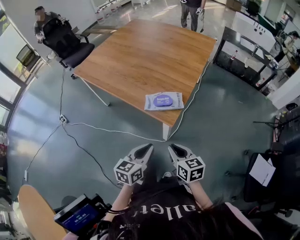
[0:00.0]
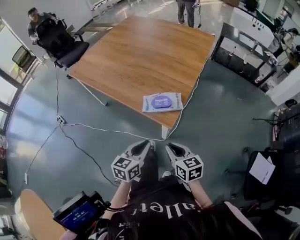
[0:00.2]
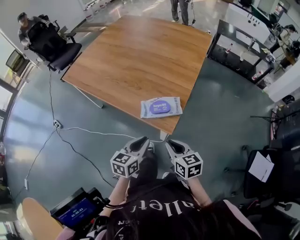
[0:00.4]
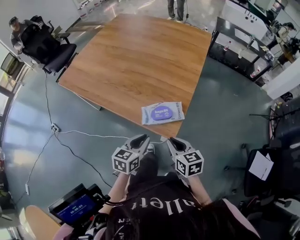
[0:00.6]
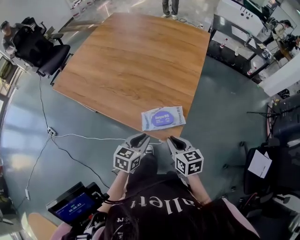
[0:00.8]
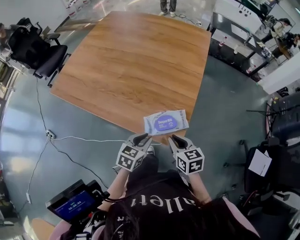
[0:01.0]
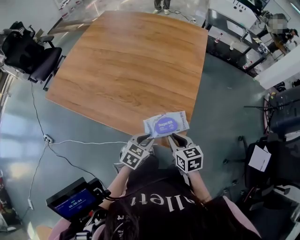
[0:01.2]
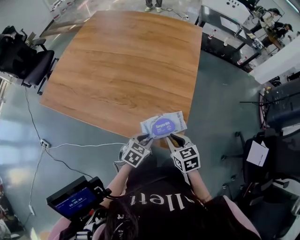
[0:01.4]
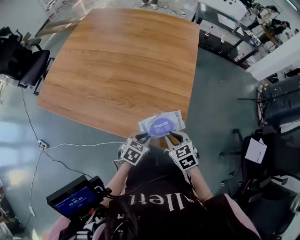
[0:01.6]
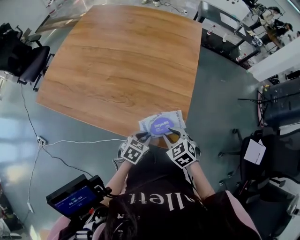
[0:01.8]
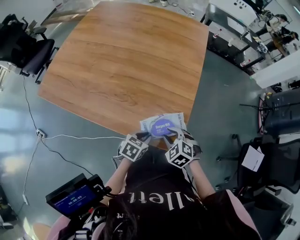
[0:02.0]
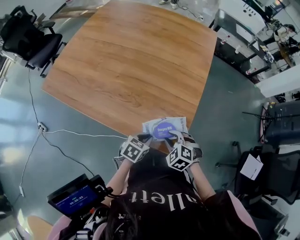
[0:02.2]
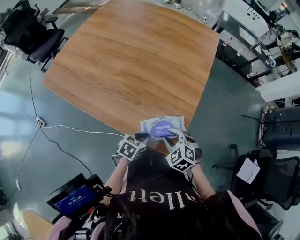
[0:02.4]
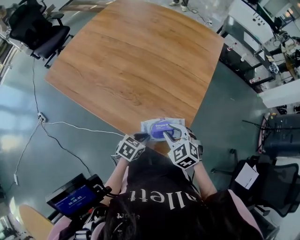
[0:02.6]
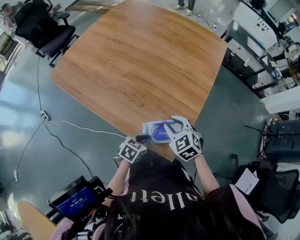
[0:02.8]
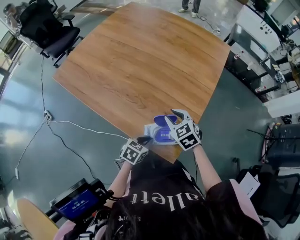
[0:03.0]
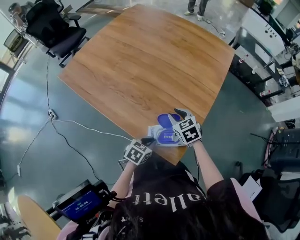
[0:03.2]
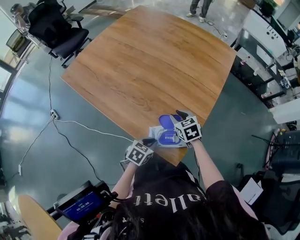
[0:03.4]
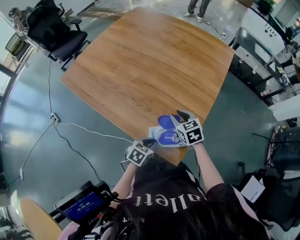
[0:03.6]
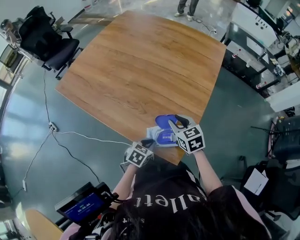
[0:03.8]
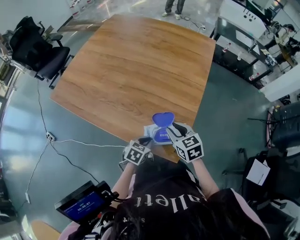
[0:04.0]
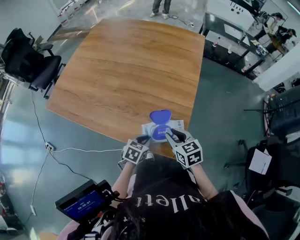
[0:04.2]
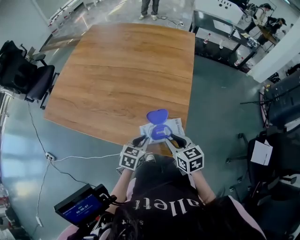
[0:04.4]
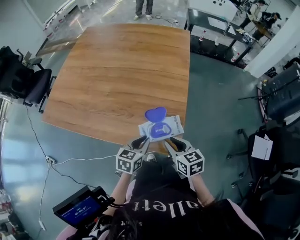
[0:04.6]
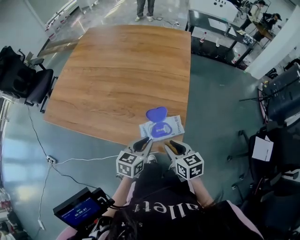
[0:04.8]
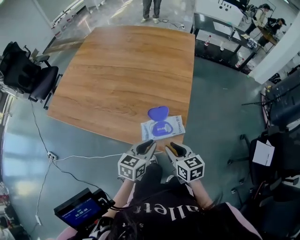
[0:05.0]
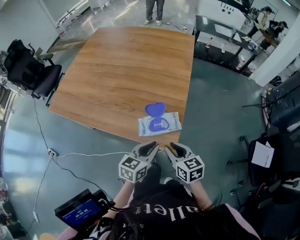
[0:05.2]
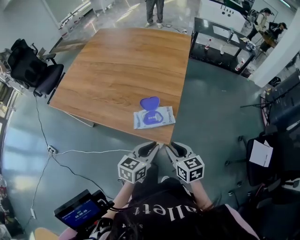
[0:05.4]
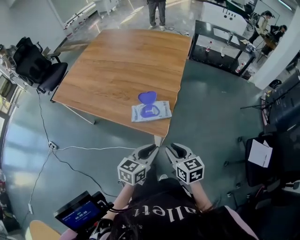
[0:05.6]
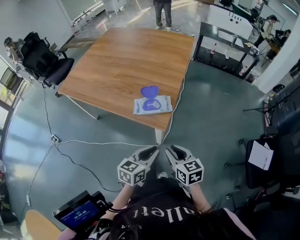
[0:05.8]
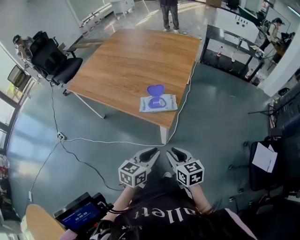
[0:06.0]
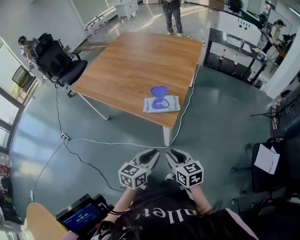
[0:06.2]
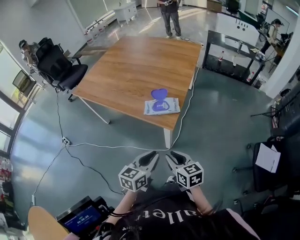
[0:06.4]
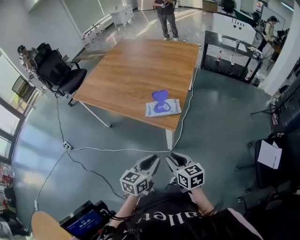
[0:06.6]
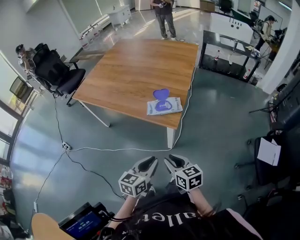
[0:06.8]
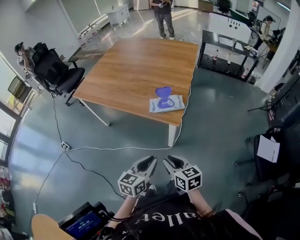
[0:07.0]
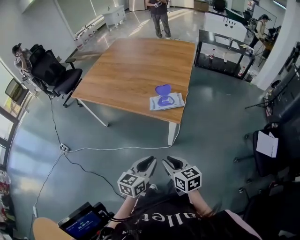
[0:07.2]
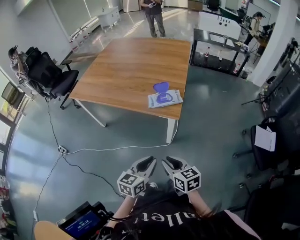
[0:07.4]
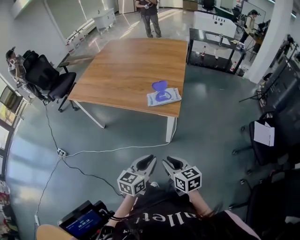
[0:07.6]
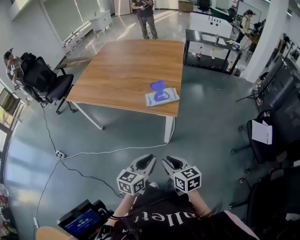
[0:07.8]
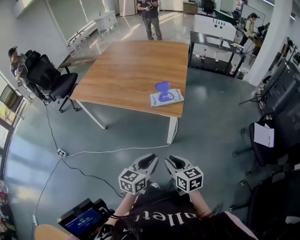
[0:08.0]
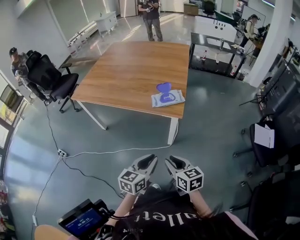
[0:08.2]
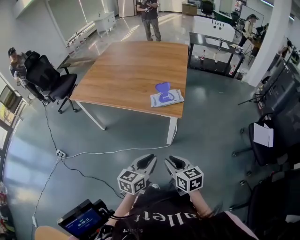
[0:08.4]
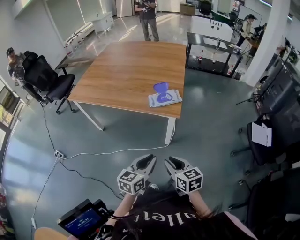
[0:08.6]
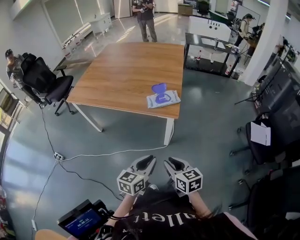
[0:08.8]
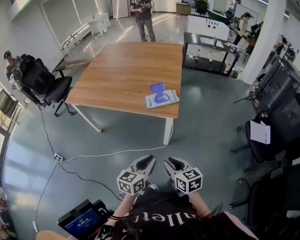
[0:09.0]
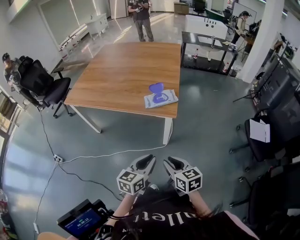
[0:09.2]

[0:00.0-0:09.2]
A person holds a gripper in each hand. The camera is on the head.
0:00.0 to 0:01.6: The right gripper is displaced forward by roughly 25 cm, and rotates approximately 30 degrees. Meanwhile the left gripper goes some 30 cm forward and downward, and rotates about 40 degrees.
0:01.6 to 0:03.0: The right gripper travels forward and to the left by roughly 15 cm, and changes its angle by about 30 degrees.
0:03.0 to 0:04.6: The left gripper goes about 5 cm upward; the right gripper heads backward, covering approximately 15 cm, and rolls clockwise, seen from behind, by approximately 40 degrees.
0:04.6 to 0:06.2: The two grippers go about 30 cm backward.
0:06.2 to 0:07.6: Both grippers move to the left and backward, some 20 cm.
0:07.6 to 0:09.2: There are only small adjustments of the grippers.

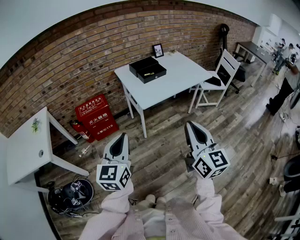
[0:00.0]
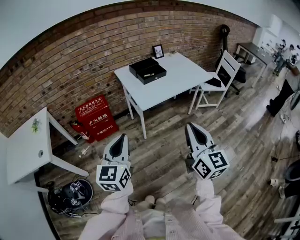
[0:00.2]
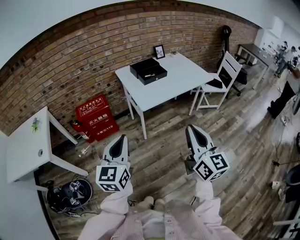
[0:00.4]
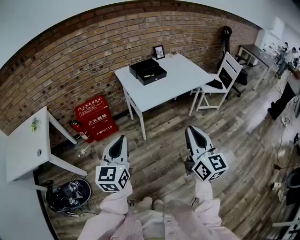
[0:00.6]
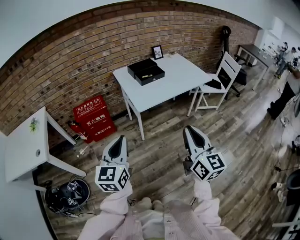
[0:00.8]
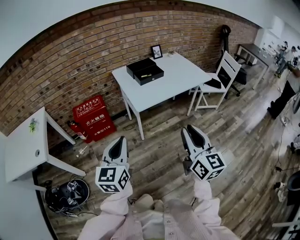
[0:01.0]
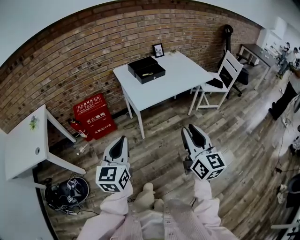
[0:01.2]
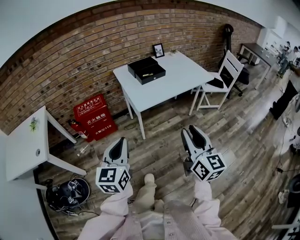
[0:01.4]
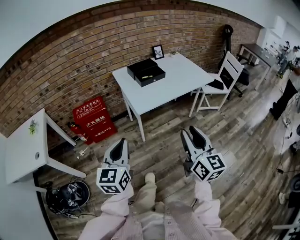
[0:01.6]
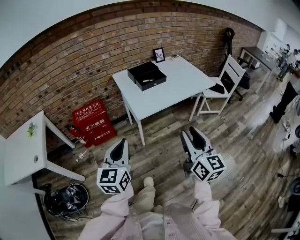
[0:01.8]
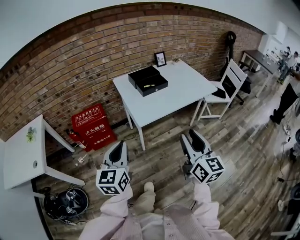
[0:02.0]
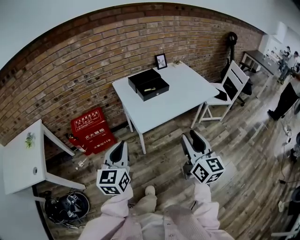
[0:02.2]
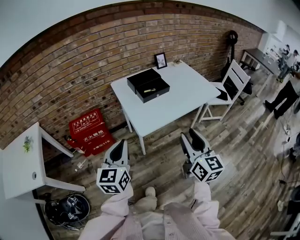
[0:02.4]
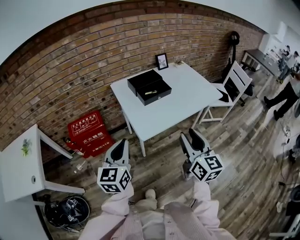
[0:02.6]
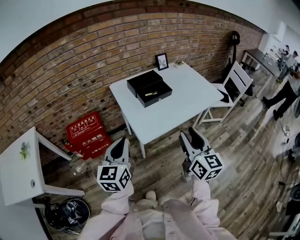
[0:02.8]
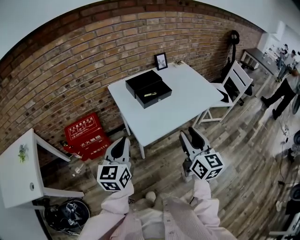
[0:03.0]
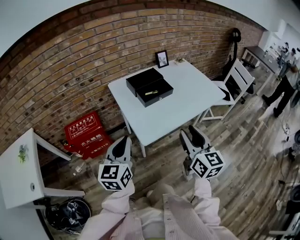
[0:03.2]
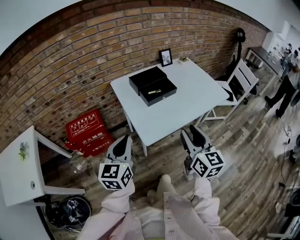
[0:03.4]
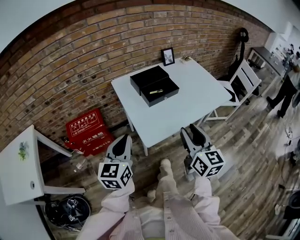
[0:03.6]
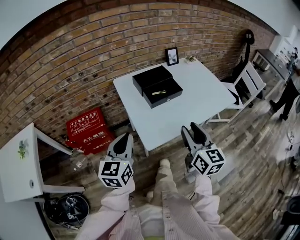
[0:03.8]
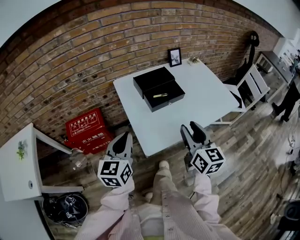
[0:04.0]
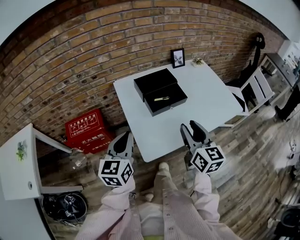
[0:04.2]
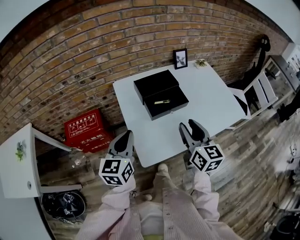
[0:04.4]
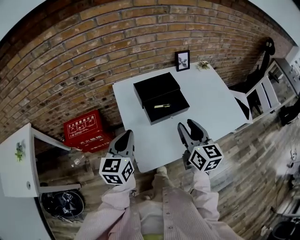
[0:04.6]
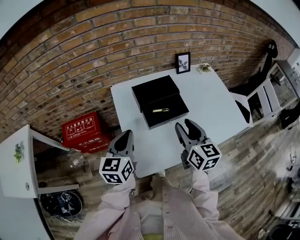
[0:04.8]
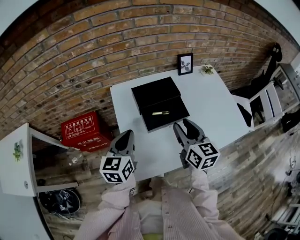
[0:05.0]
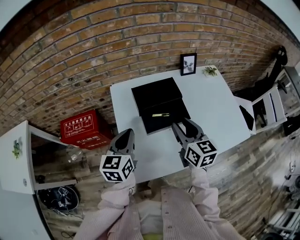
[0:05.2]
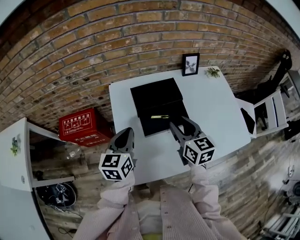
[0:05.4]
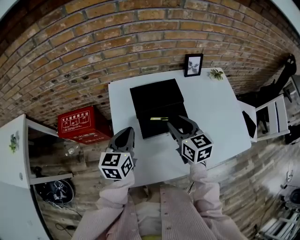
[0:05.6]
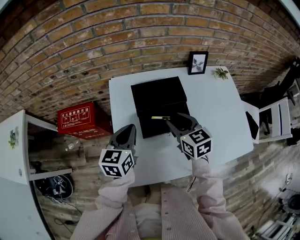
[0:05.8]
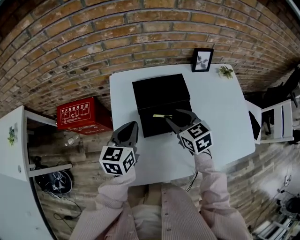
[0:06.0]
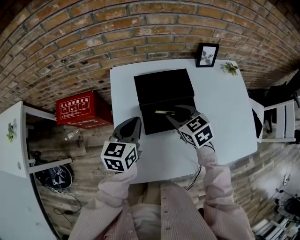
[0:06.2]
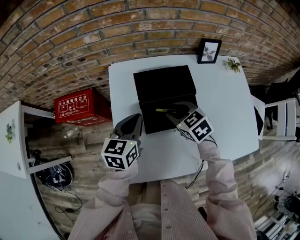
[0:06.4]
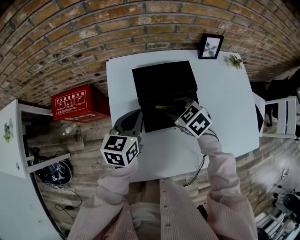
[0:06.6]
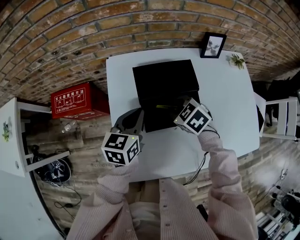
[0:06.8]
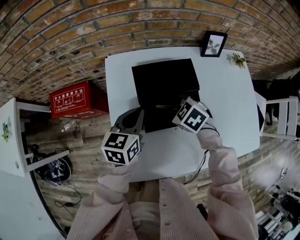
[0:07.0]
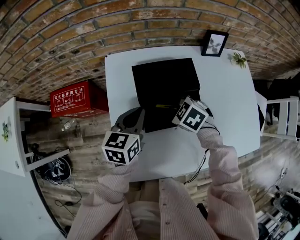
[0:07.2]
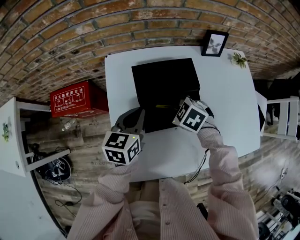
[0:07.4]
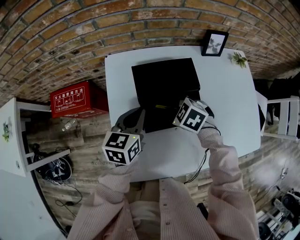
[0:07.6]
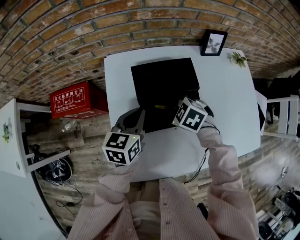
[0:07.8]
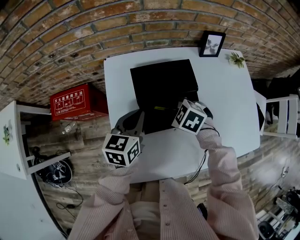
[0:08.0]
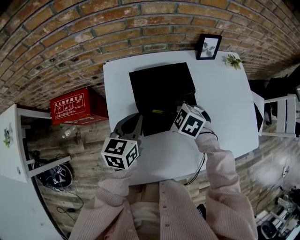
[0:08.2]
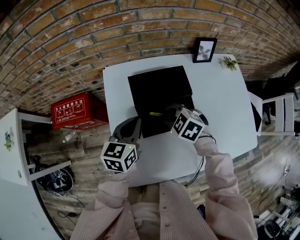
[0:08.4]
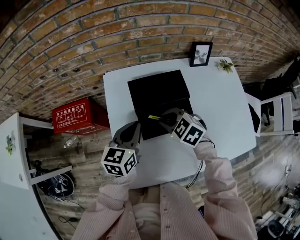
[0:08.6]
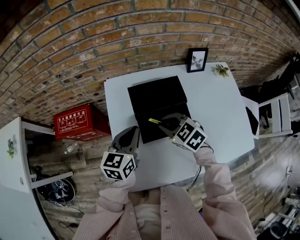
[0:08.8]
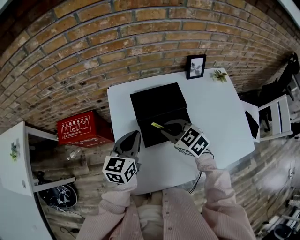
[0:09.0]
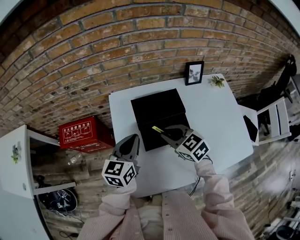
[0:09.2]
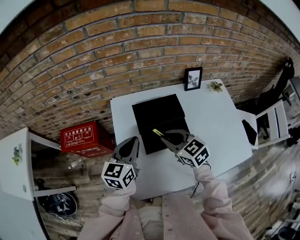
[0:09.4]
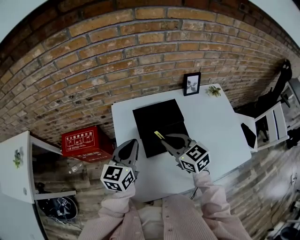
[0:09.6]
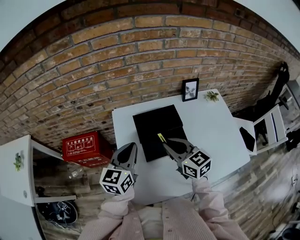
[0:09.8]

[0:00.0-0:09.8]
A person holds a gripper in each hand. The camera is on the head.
0:00.0 to 0:01.4: The left gripper moves roughly 5 cm. The right gripper goes roughly 5 cm downward, and opens up.
0:01.4 to 0:02.8: The two grippers go roughly 25 cm forward.
0:02.8 to 0:04.2: Both grippers move forward, about 15 cm.
0:04.2 to 0:05.6: The right gripper is displaced forward by about 25 cm, and changes its angle by about 30 degrees. Meanwhile the left gripper goes approximately 20 cm forward and to the right.
0:05.6 to 0:07.0: The right gripper heads downward, covering roughly 15 cm, and tips its fingers downward by some 40 degrees; the left gripper goes some 10 cm downward and forward.
0:07.0 to 0:08.4: The right gripper closes its fingers.
0:08.4 to 0:09.8: Both grippers travel together upward, approximately 15 cm. The right gripper points its fingers about 40 degrees further upward.

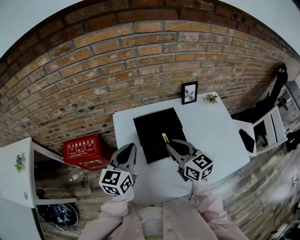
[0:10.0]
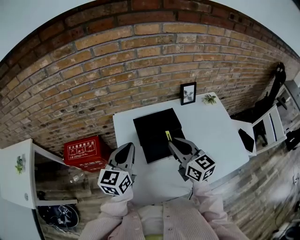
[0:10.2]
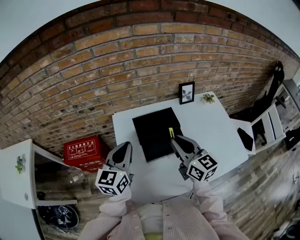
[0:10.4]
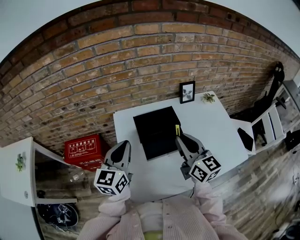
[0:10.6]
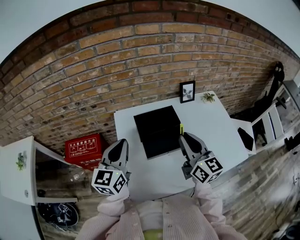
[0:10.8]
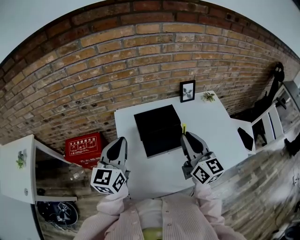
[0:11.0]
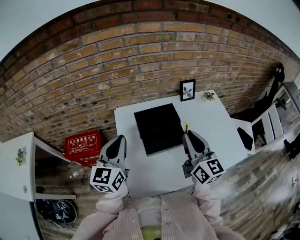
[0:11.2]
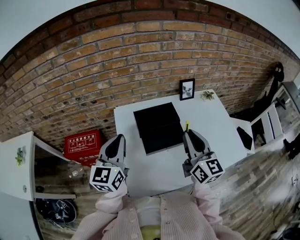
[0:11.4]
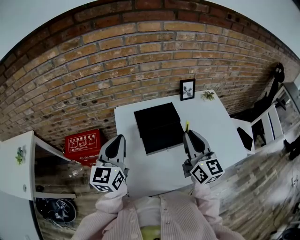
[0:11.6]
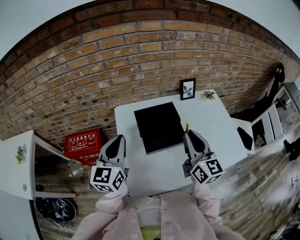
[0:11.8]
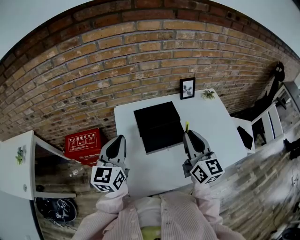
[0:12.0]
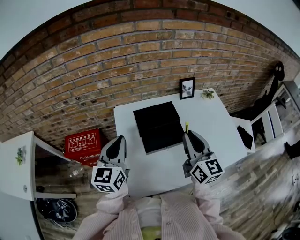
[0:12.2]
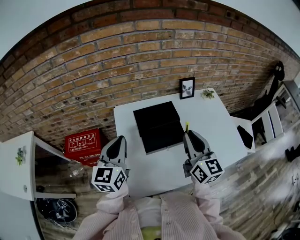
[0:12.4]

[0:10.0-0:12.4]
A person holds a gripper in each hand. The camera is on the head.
0:10.0 to 0:11.2: The left gripper heads upward, covering roughly 5 cm. Meanwhile the right gripper heads upward and to the right, covering some 10 cm, and changes its angle by roughly 20 degrees.
0:11.2 to 0:12.4: The two grippers keep their place.

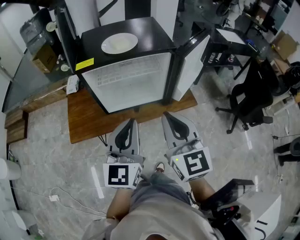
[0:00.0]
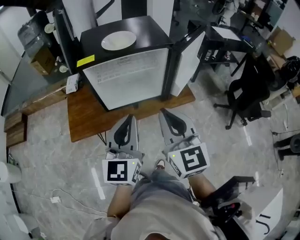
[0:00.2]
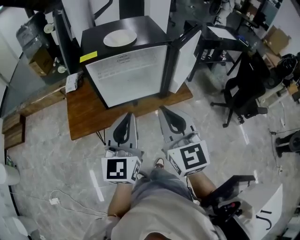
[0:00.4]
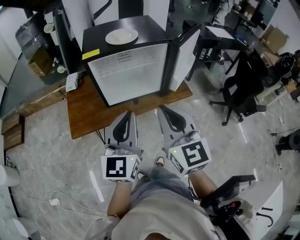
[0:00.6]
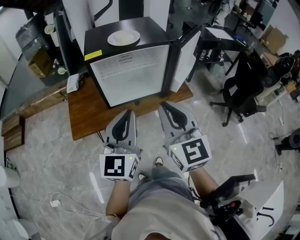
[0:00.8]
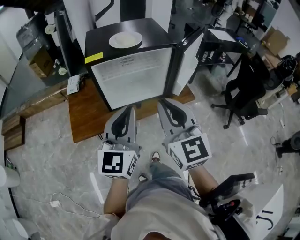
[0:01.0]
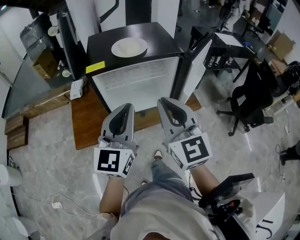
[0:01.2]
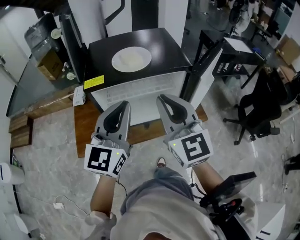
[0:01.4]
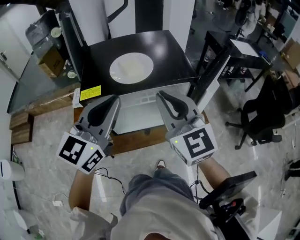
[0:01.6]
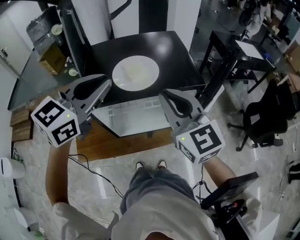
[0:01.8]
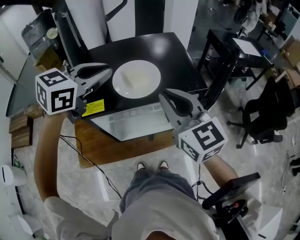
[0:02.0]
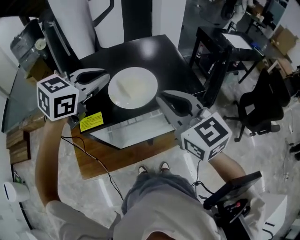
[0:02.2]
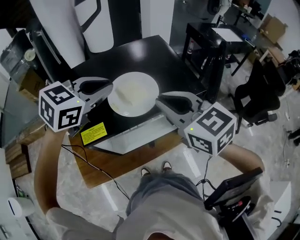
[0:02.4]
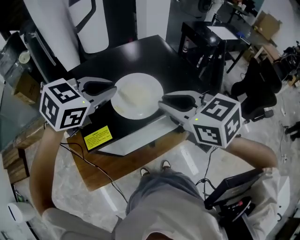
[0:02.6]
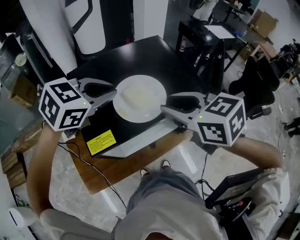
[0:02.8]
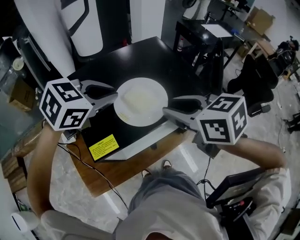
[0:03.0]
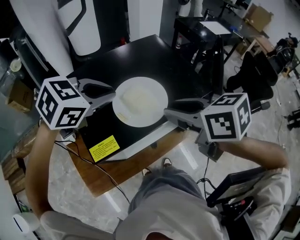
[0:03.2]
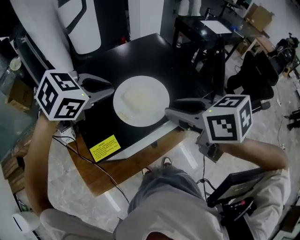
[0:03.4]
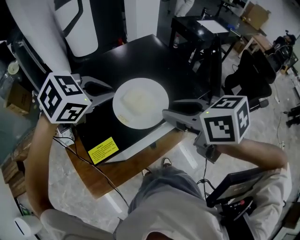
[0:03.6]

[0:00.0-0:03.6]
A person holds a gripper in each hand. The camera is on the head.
0:00.0 to 0:01.8: The grippers both shift forward by some 35 cm. The left gripper changes its angle by roughly 30 degrees.
0:01.8 to 0:03.6: The right gripper heads forward and to the left, covering roughly 10 cm, swivels approximately 40 degrees, and opens, while the left gripper goes about 20 cm forward and downward, and tips its fingers downward by approximately 40 degrees.
